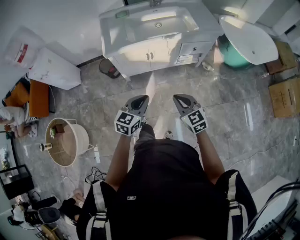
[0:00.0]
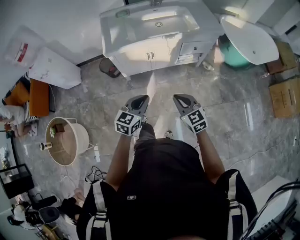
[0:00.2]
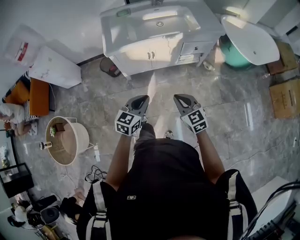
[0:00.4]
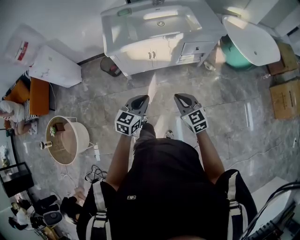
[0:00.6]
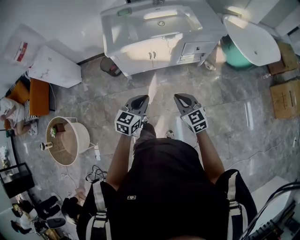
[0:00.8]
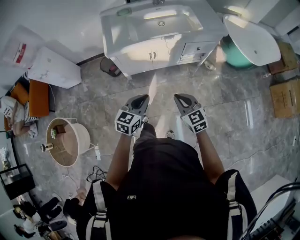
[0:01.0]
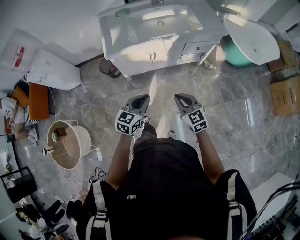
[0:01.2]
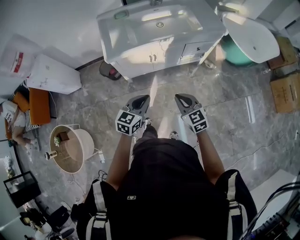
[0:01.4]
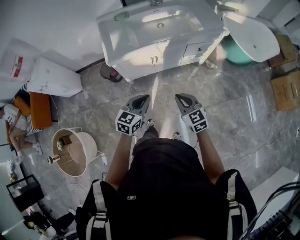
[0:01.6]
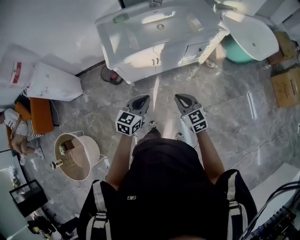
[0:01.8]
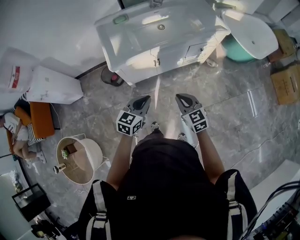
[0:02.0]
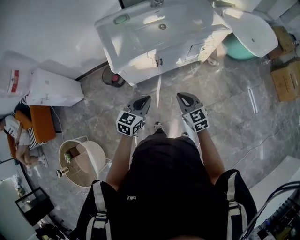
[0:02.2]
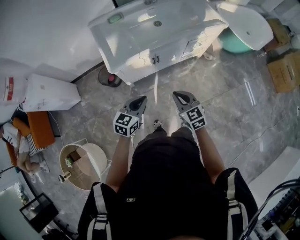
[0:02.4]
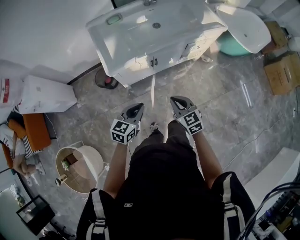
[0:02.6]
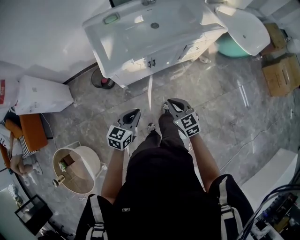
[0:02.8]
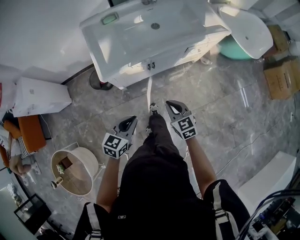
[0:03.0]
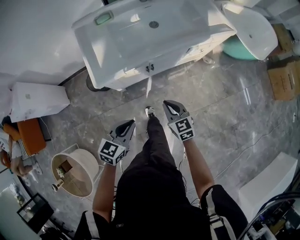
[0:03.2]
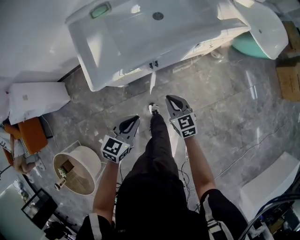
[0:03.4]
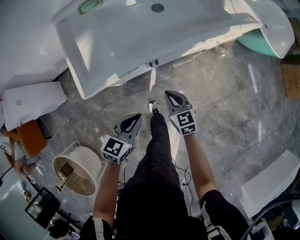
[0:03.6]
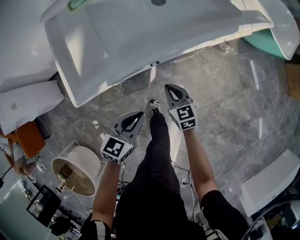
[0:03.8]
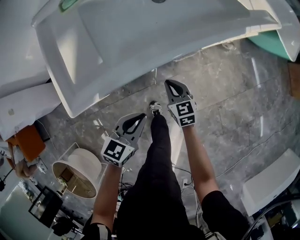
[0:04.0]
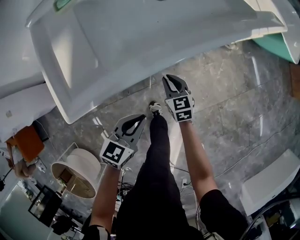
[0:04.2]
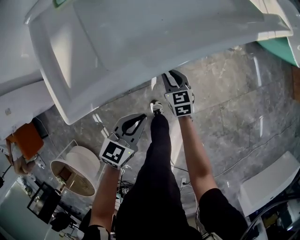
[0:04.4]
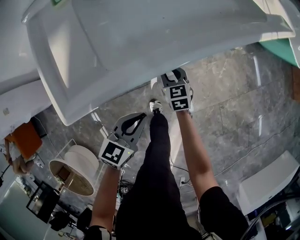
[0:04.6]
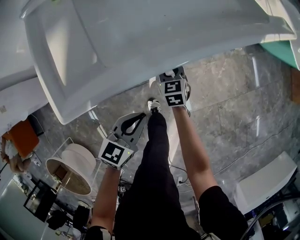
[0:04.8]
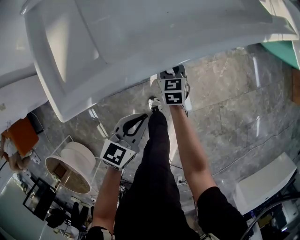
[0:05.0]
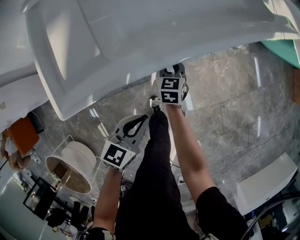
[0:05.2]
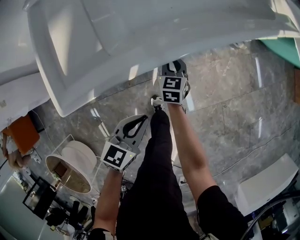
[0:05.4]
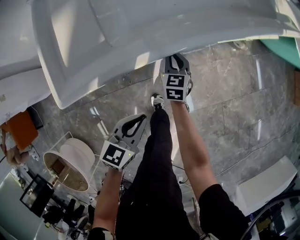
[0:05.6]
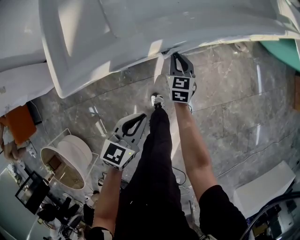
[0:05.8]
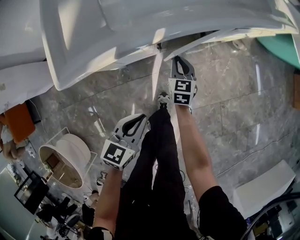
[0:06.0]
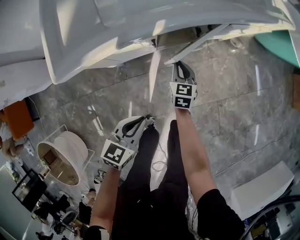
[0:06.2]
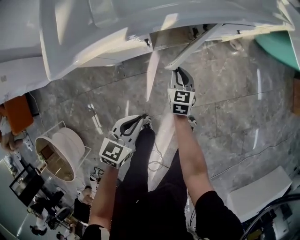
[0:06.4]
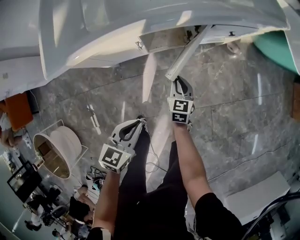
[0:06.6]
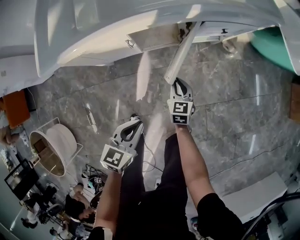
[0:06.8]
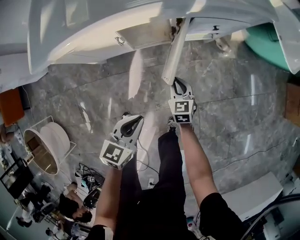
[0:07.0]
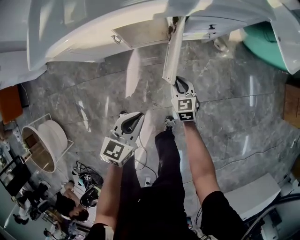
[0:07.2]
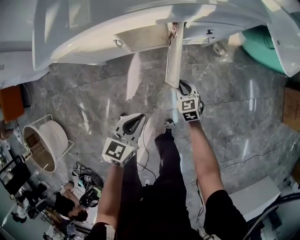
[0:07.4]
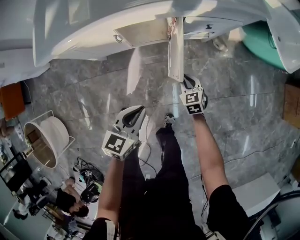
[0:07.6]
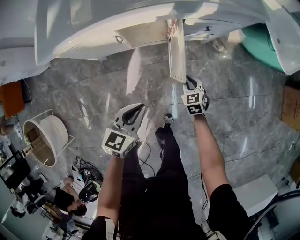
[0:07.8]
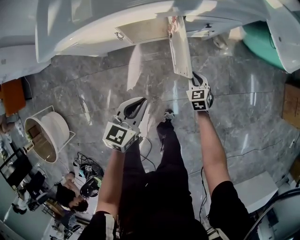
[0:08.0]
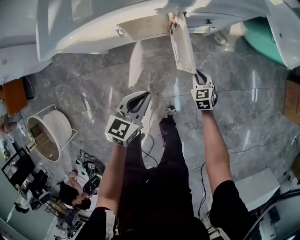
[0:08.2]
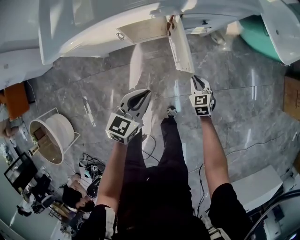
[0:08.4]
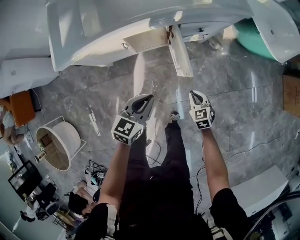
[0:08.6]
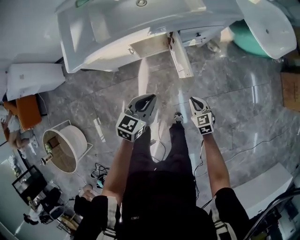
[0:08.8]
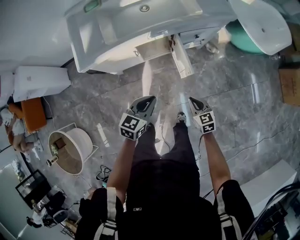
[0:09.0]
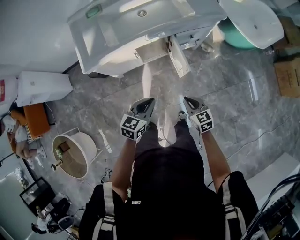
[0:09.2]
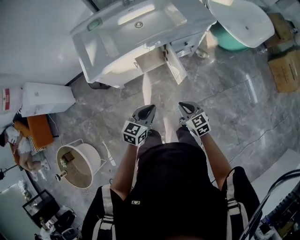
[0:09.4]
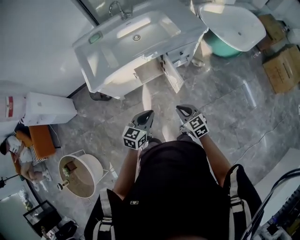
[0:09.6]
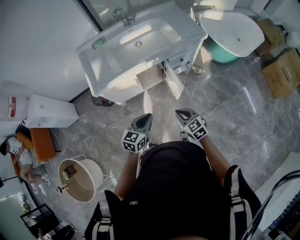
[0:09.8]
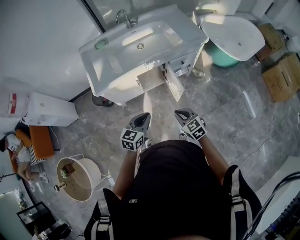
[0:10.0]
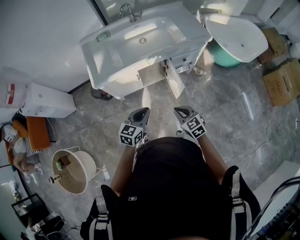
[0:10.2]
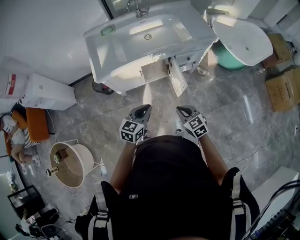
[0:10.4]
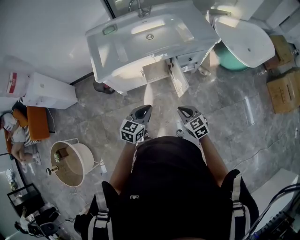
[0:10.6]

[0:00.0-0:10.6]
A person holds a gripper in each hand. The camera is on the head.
0.0 to 1.6 s: The two grippers go approximately 10 cm forward and to the left.
1.6 to 3.0 s: The right gripper goes roughly 15 cm to the left, downward and forward; the left gripper is displaced to the left and downward by some 15 cm.
3.0 to 4.6 s: Both grippers move downward and forward, approximately 35 cm. The right gripper opens its fingers.
4.6 to 6.0 s: The left gripper shifts approximately 10 cm backward. Meanwhile the right gripper shifts by roughly 5 cm.
6.0 to 7.6 s: The grippers both shift to the right by about 25 cm. The right gripper changes its angle by approximately 30 degrees.
7.6 to 9.0 s: The left gripper is displaced upward by some 15 cm. The right gripper moves upward and backward, roughly 25 cm.
9.0 to 10.6 s: The left gripper moves upward, roughly 10 cm. The right gripper moves upward and to the left, some 15 cm.

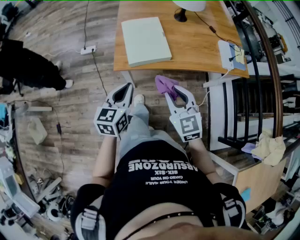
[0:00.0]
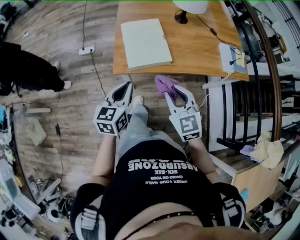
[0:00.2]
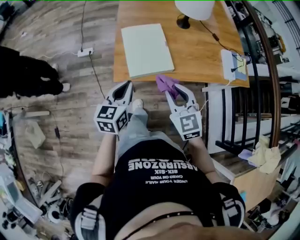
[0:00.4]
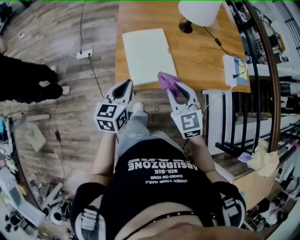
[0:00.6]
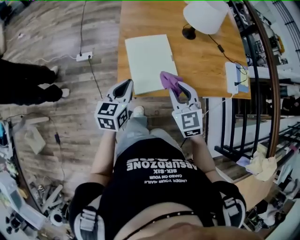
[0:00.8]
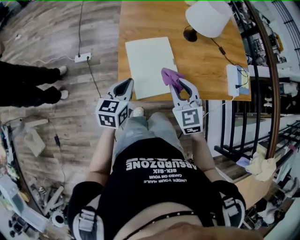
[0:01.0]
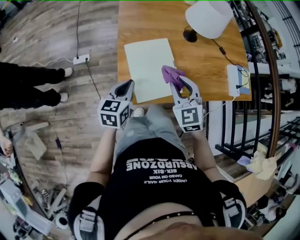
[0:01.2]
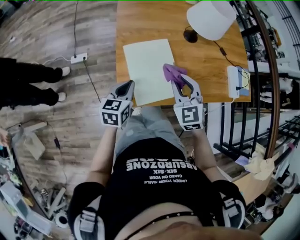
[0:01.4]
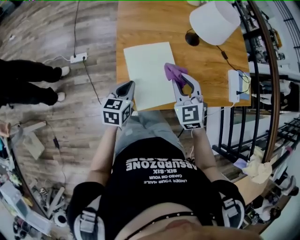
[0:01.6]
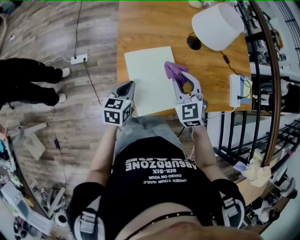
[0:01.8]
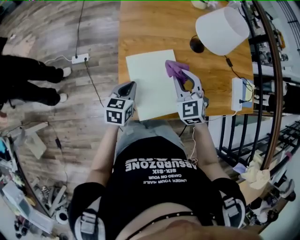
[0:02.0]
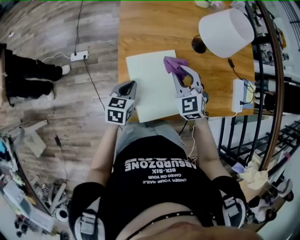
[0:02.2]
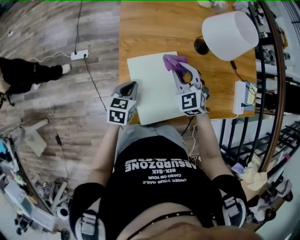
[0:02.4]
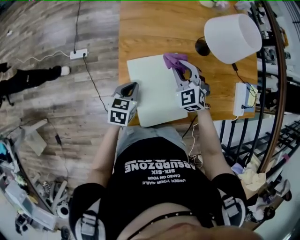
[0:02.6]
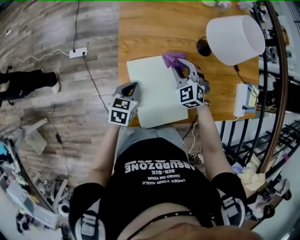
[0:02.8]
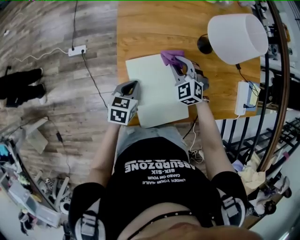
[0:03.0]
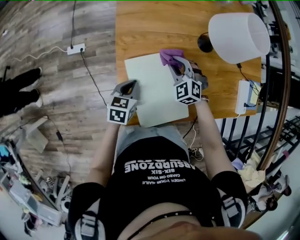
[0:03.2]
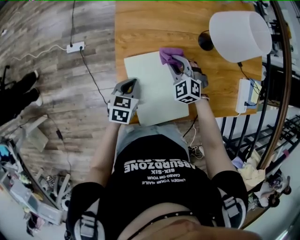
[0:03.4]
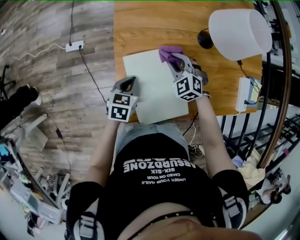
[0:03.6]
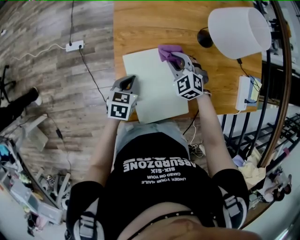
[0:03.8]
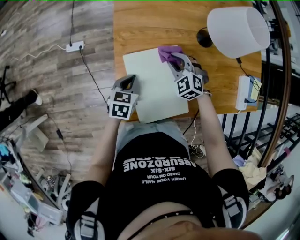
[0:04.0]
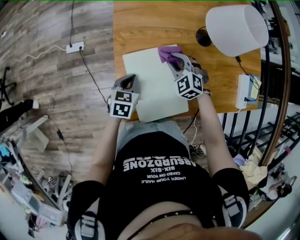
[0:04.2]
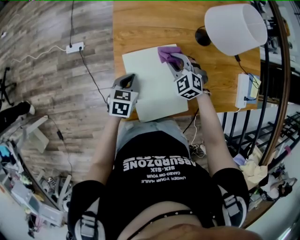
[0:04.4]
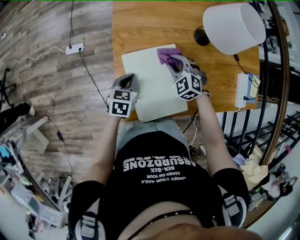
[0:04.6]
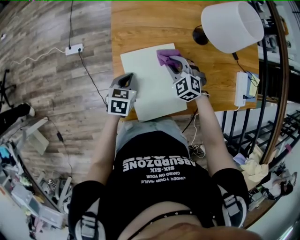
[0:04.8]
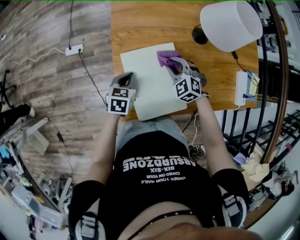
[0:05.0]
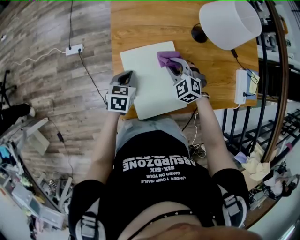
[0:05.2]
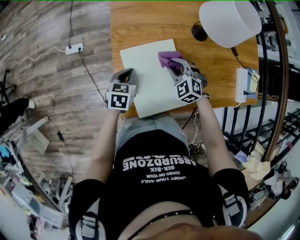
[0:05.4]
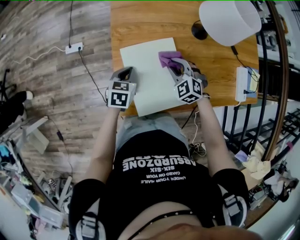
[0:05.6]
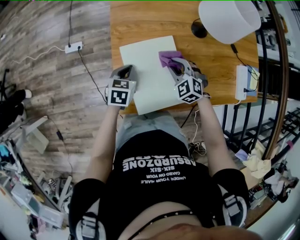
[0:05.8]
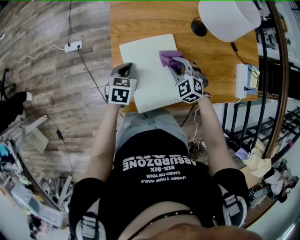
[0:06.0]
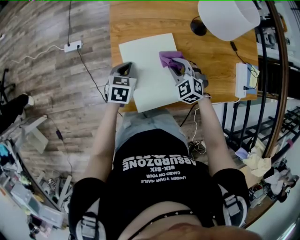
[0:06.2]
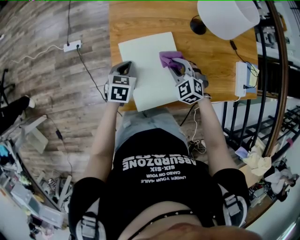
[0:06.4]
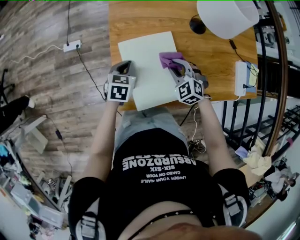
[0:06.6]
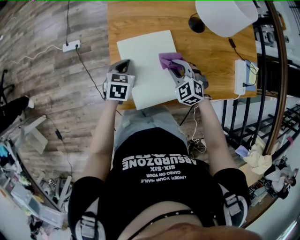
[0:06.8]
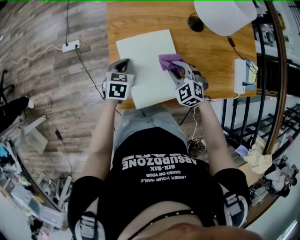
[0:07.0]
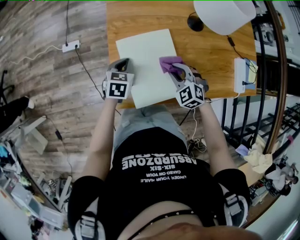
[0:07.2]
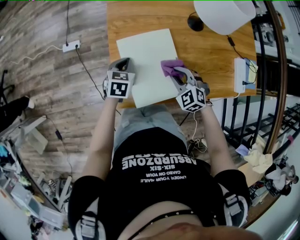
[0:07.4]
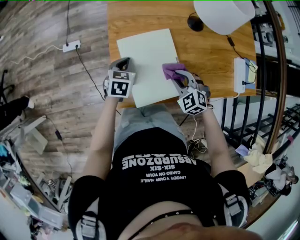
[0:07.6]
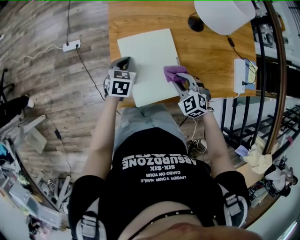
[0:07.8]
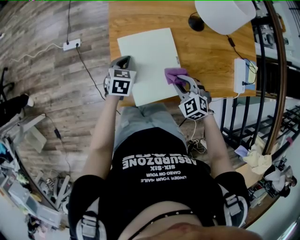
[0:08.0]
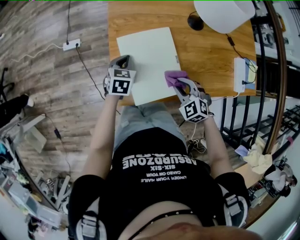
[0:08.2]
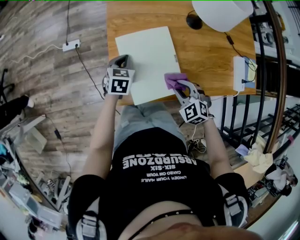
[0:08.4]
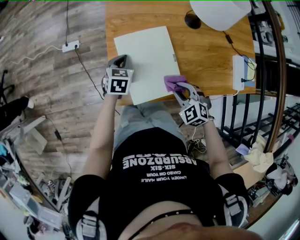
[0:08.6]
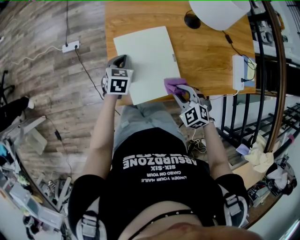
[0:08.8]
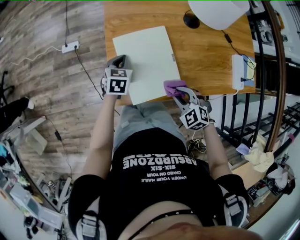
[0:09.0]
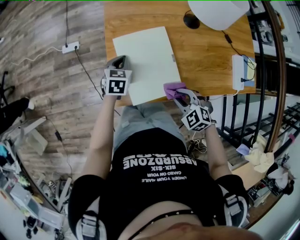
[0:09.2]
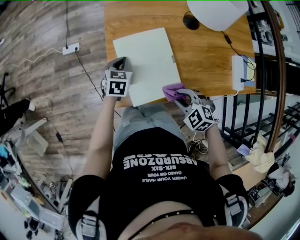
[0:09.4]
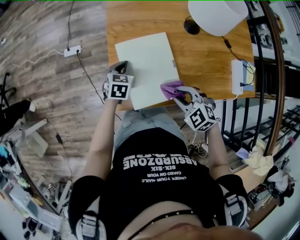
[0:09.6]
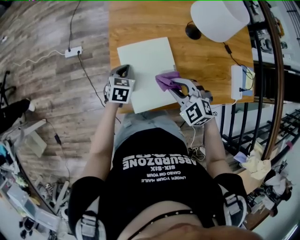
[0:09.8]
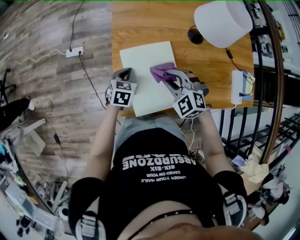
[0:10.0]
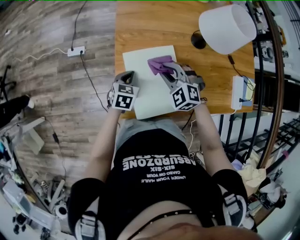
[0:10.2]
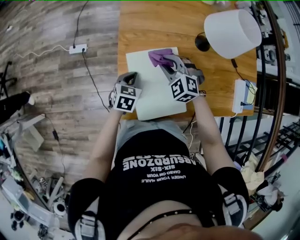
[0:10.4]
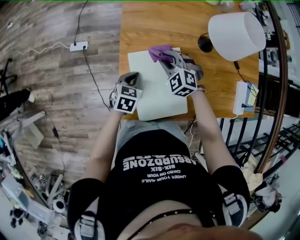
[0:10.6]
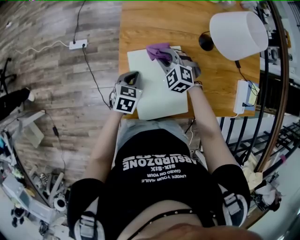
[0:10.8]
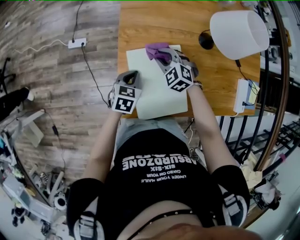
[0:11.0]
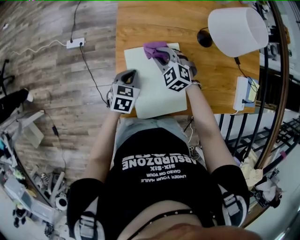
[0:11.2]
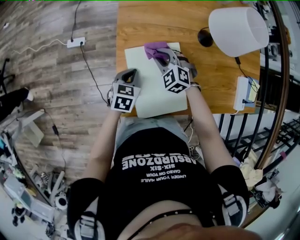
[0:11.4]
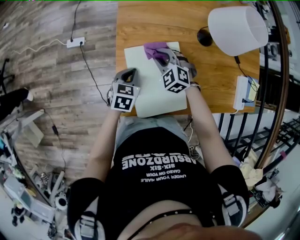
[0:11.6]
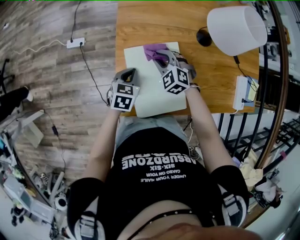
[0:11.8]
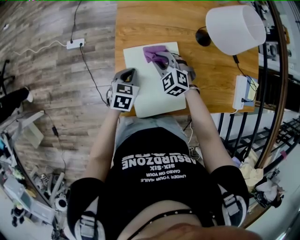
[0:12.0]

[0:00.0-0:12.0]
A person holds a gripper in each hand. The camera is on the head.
0.0 to 1.6 s: Both grippers move forward, roughly 25 cm.
1.6 to 3.0 s: The right gripper is displaced forward and downward by roughly 20 cm, and changes its angle by about 20 degrees; the left gripper heads forward and downward, covering approximately 10 cm.
3.0 to 4.4 s: The grippers stay close to where they were, moving slightly.
4.4 to 6.0 s: The right gripper travels backward by roughly 5 cm.
6.0 to 7.6 s: The right gripper goes some 10 cm backward.
7.6 to 9.0 s: The right gripper travels backward by about 10 cm.
9.0 to 10.4 s: The right gripper moves forward, some 25 cm, and rotates about 20 degrees.
10.4 to 12.0 s: The right gripper shifts about 5 cm downward.

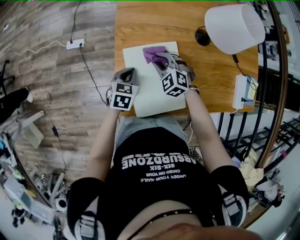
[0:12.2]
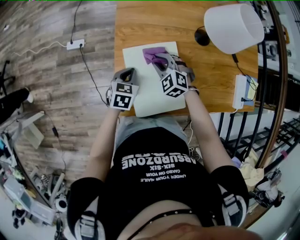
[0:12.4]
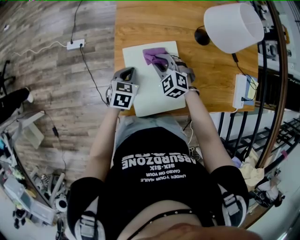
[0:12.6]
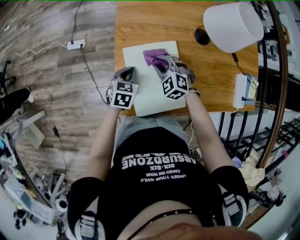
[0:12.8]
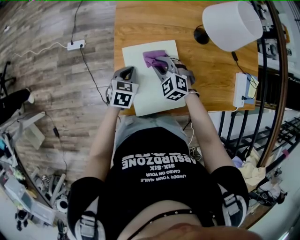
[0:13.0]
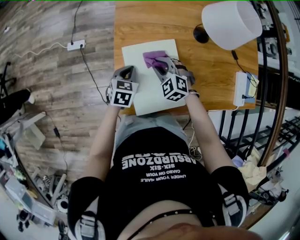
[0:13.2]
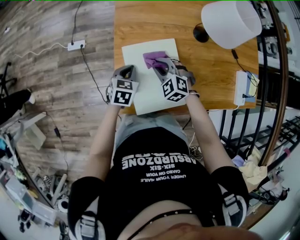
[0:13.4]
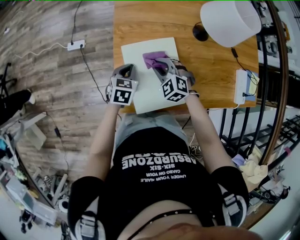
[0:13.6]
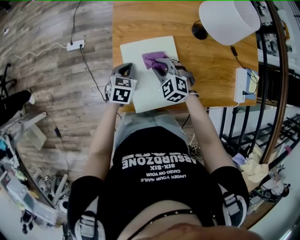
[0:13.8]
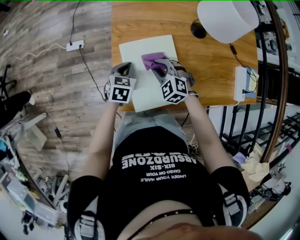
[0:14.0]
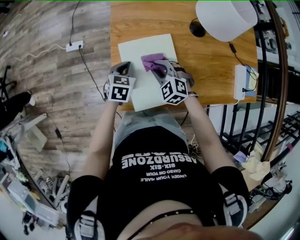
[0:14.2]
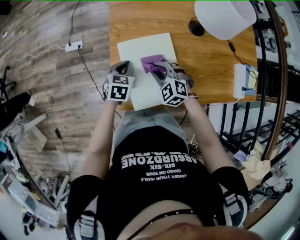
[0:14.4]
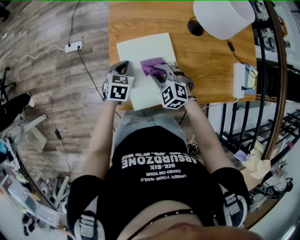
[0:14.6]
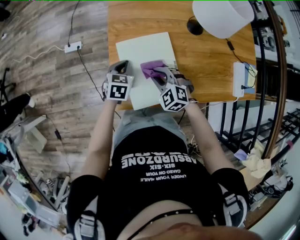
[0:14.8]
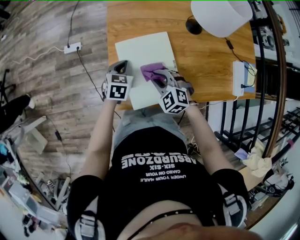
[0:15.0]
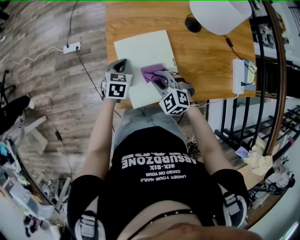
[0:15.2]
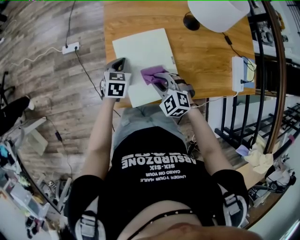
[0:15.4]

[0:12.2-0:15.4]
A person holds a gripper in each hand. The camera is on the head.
12.2 to 13.8 s: The grippers make only small movements.
13.8 to 15.4 s: The right gripper travels backward by approximately 10 cm.
